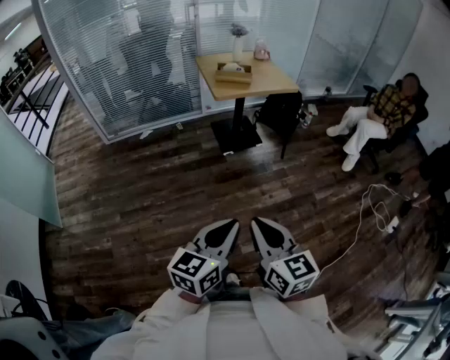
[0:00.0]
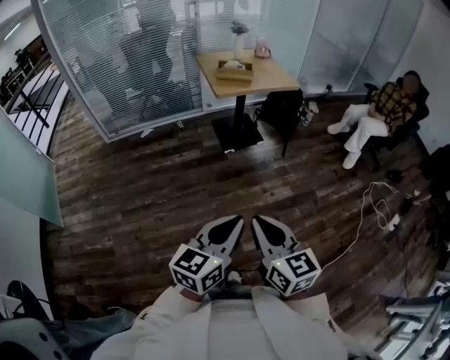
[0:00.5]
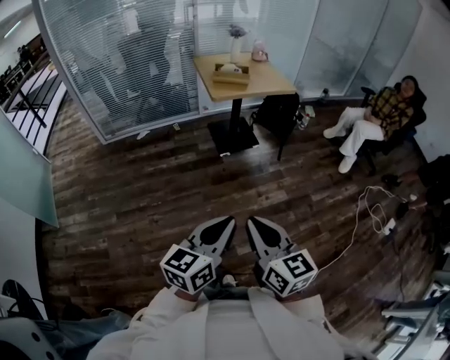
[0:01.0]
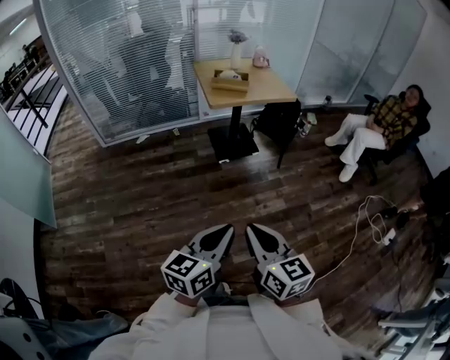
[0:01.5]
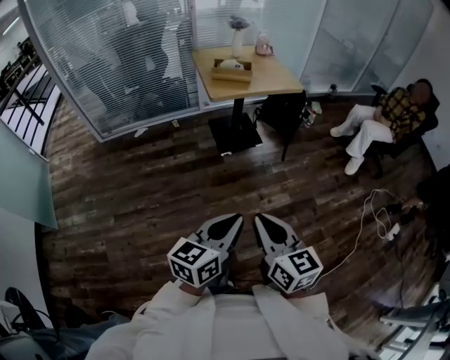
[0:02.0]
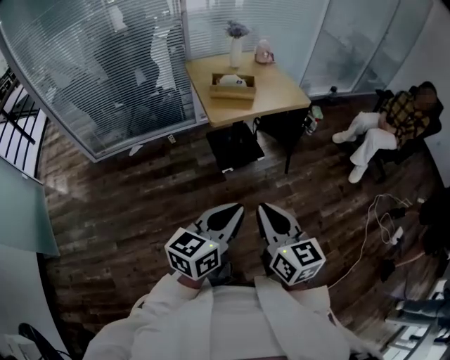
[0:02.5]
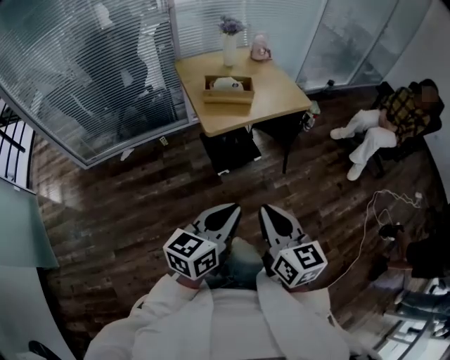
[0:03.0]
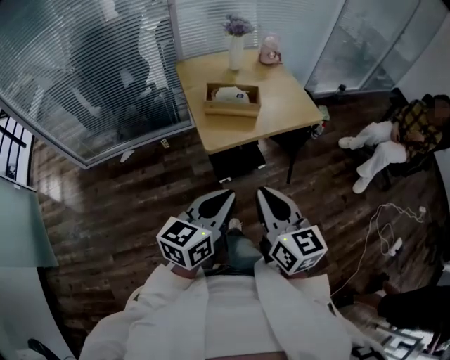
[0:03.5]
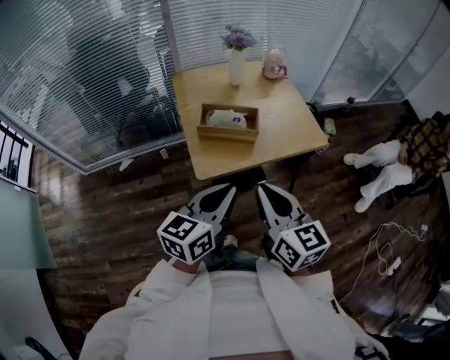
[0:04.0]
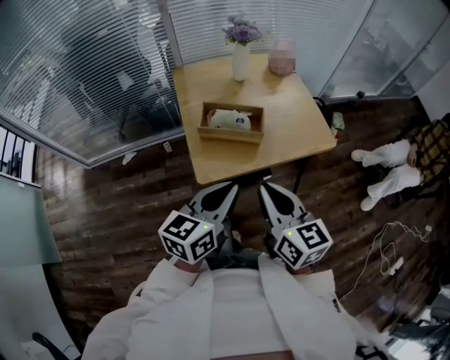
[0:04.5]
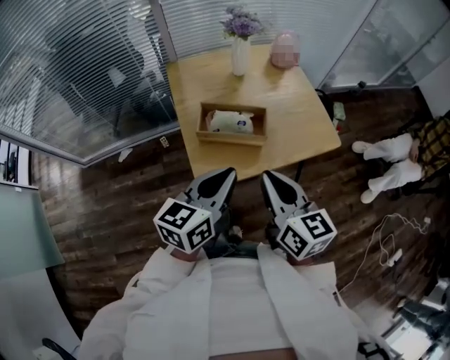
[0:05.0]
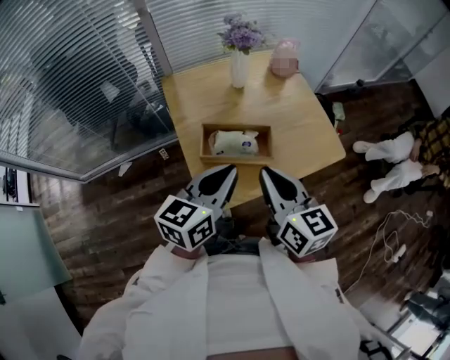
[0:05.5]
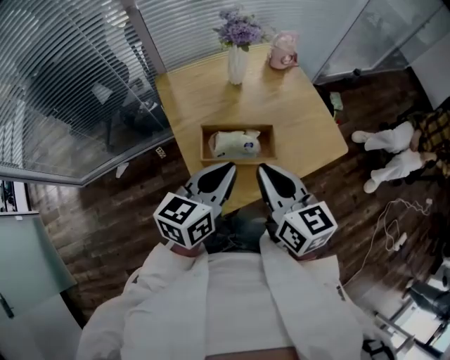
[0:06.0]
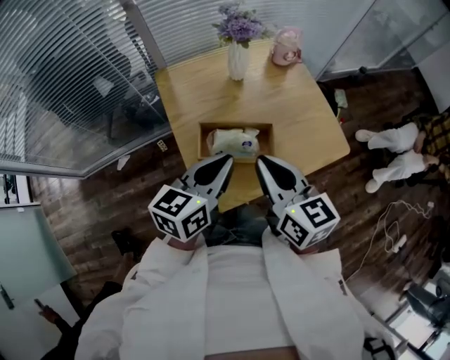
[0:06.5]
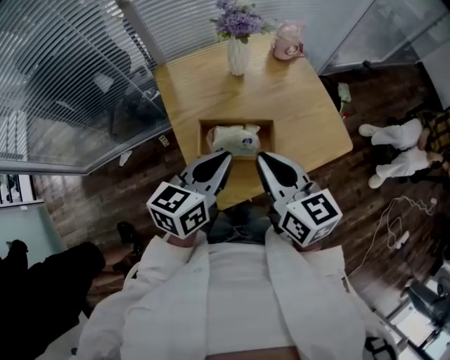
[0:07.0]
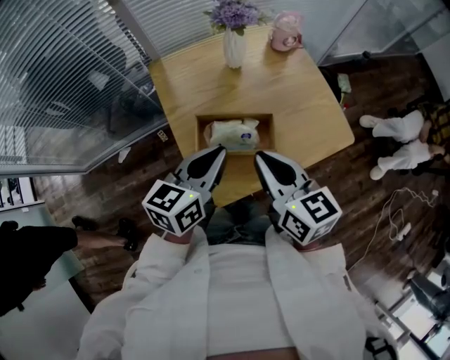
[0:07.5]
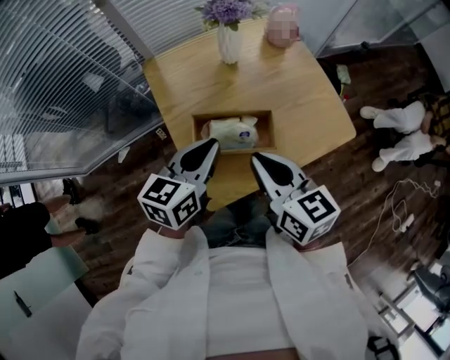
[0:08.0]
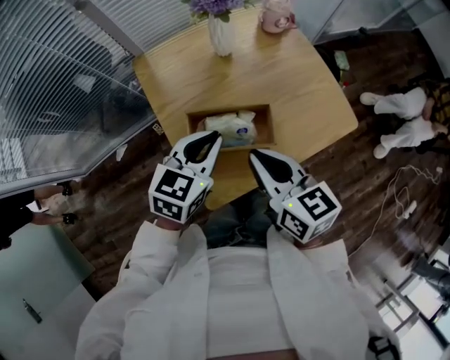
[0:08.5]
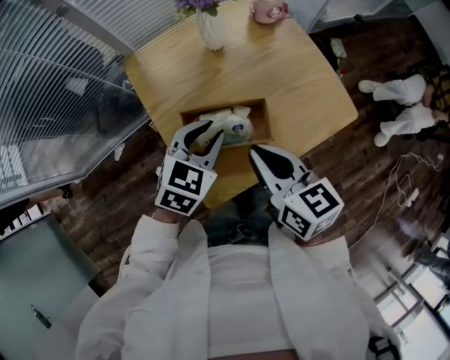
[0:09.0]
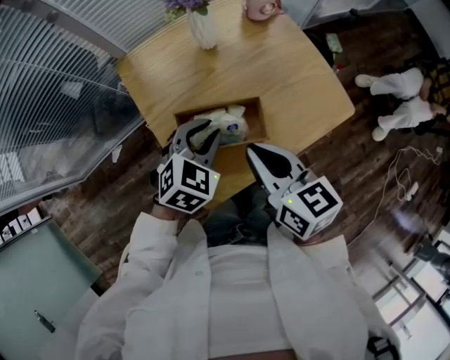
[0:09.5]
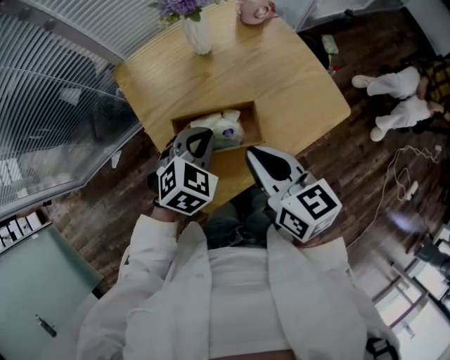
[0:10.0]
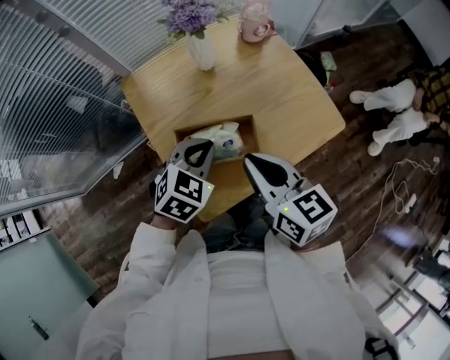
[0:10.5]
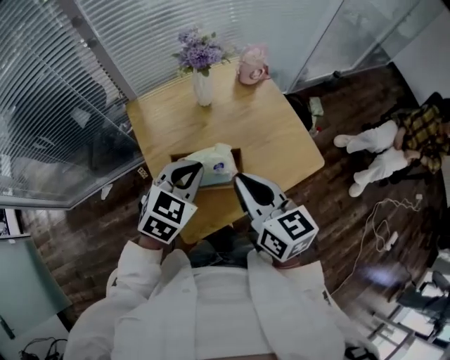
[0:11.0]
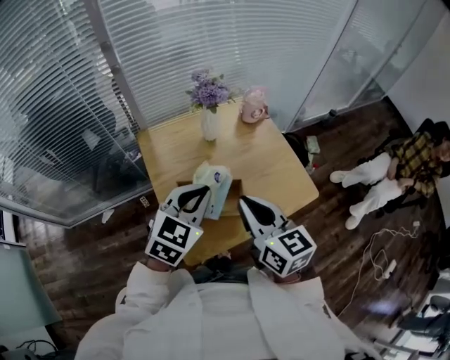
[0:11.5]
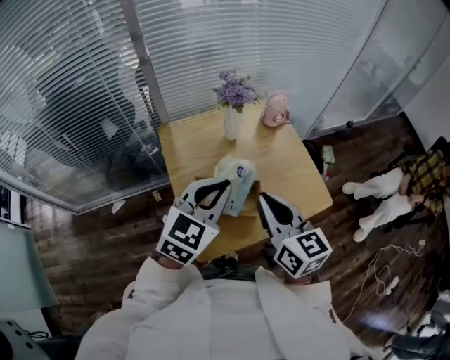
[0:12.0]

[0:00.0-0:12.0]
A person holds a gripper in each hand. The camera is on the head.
0:00.0 to 0:02.0: Both grippers move forward, some 10 cm.
0:02.0 to 0:04.0: Both grippers are carried forward, approximately 50 cm.
0:04.0 to 0:06.0: The two grippers go some 20 cm forward.
0:06.0 to 0:08.0: The left gripper shifts by approximately 5 cm.
0:08.0 to 0:10.0: The left gripper goes some 10 cm downward, and twists some 50 degrees clockwise, seen from behind.
0:10.0 to 0:12.0: The right gripper travels upward by about 10 cm. Meanwhile the left gripper goes approximately 20 cm upward, and tilts its fingers some 30 degrees upward.

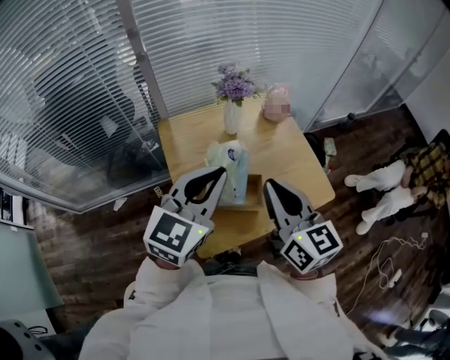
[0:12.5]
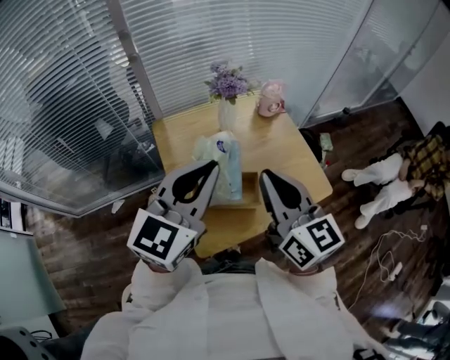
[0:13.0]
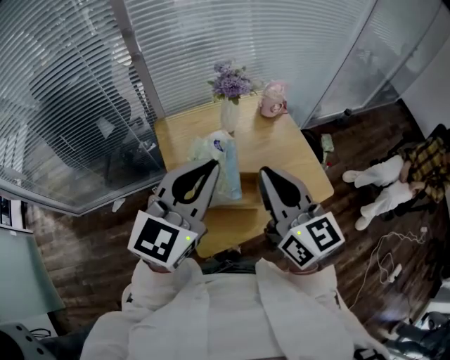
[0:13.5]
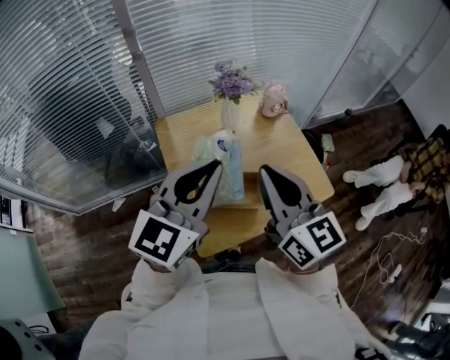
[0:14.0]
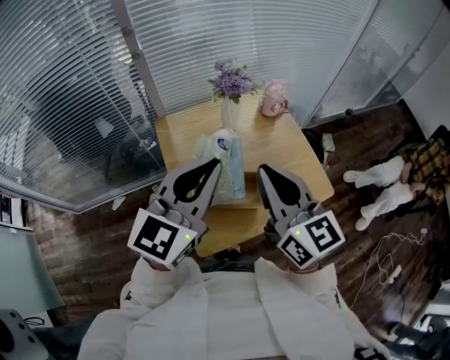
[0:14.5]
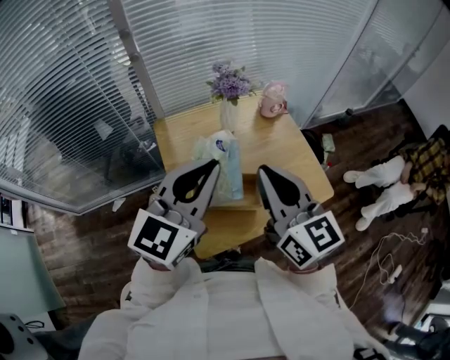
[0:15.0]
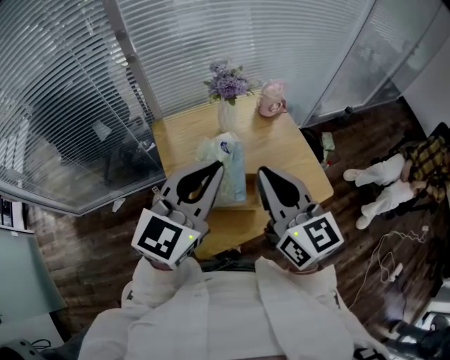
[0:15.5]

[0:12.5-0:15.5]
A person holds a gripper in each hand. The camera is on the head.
0:12.5 to 0:15.5: The grippers make only small movements.

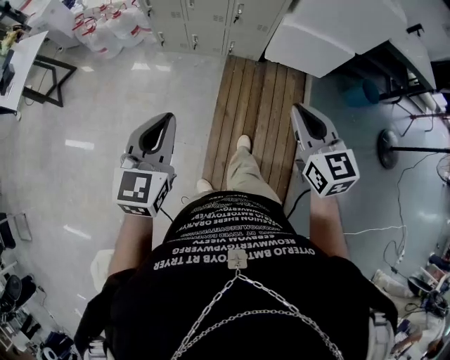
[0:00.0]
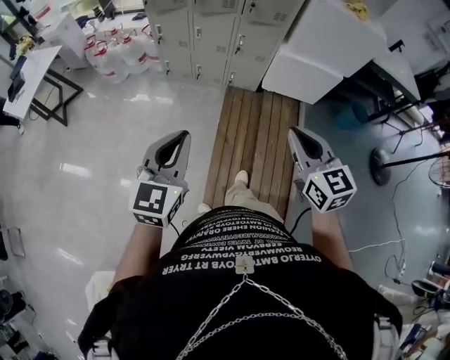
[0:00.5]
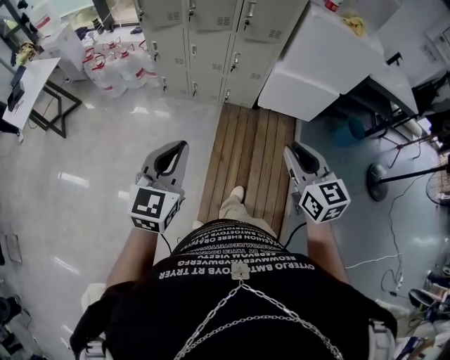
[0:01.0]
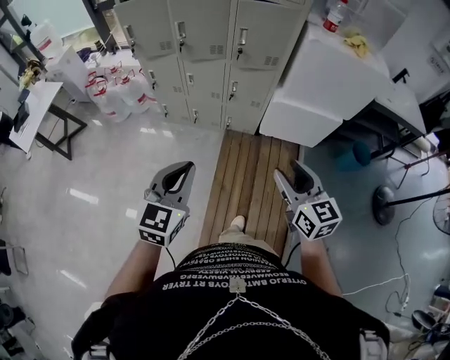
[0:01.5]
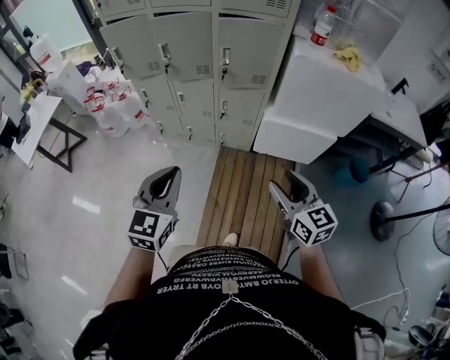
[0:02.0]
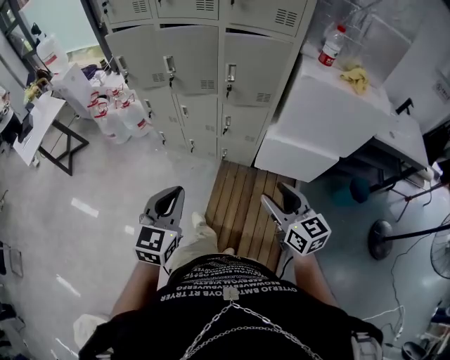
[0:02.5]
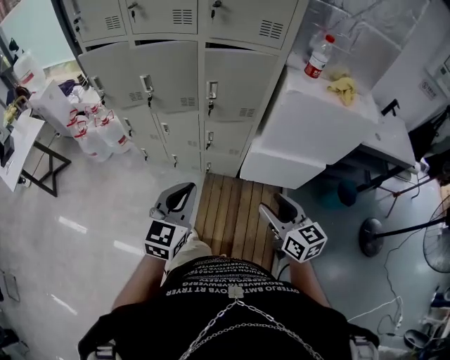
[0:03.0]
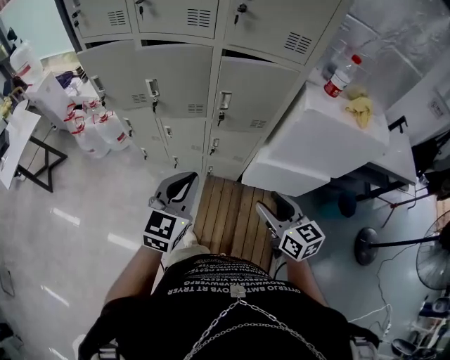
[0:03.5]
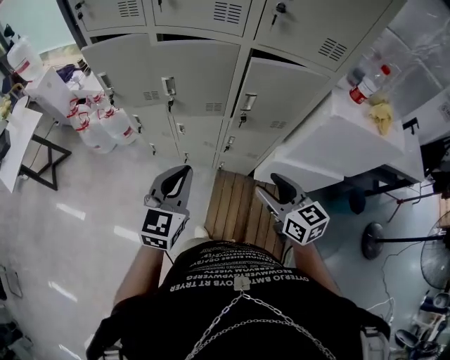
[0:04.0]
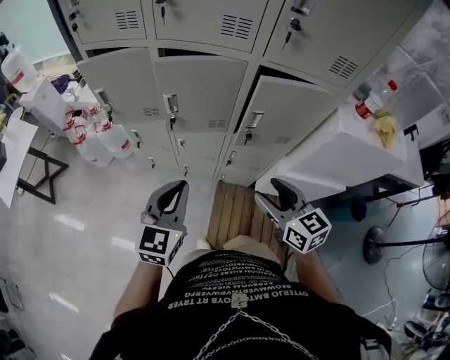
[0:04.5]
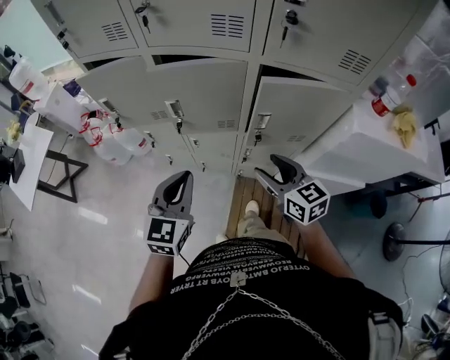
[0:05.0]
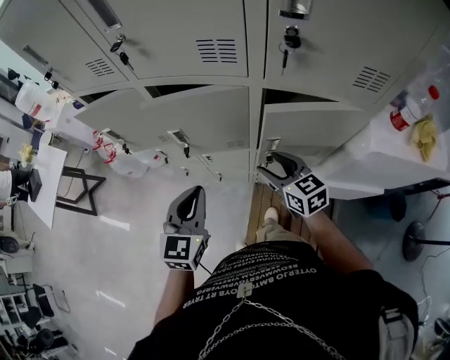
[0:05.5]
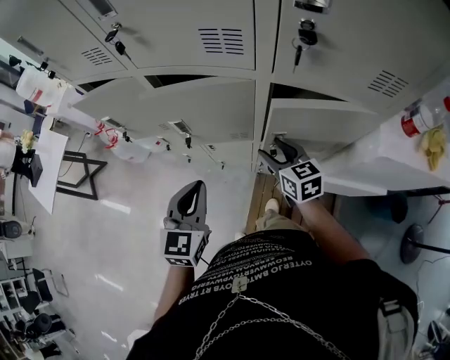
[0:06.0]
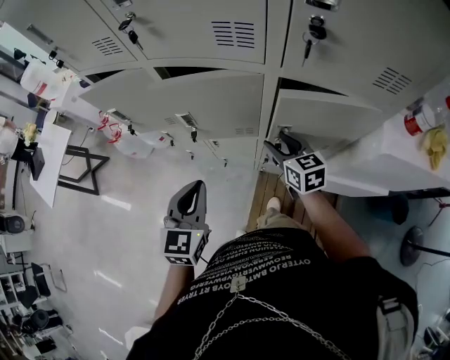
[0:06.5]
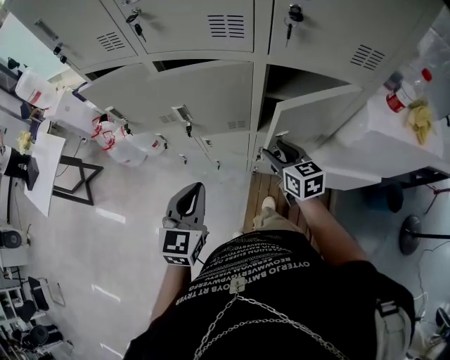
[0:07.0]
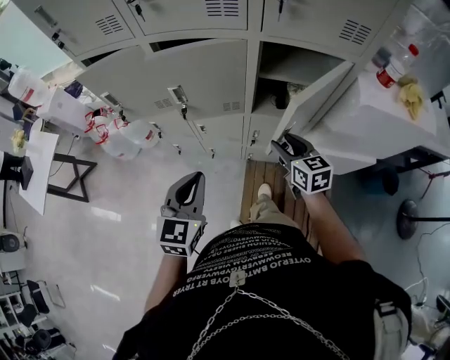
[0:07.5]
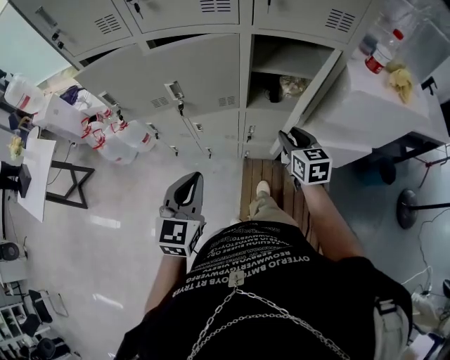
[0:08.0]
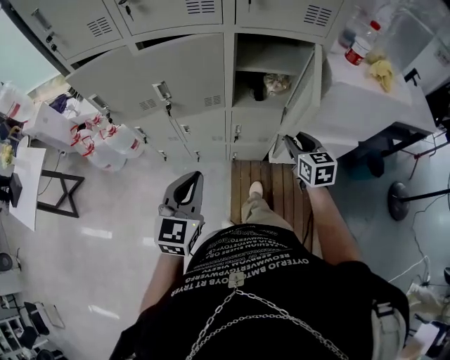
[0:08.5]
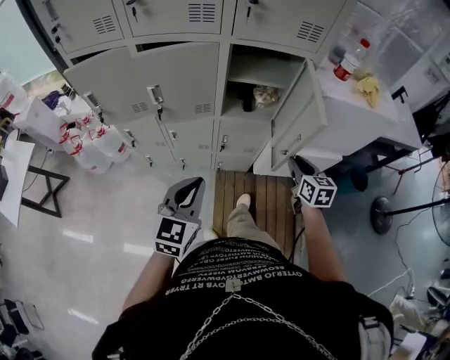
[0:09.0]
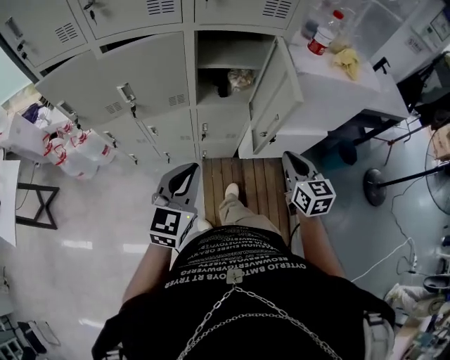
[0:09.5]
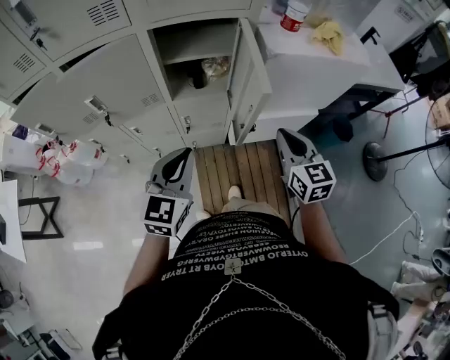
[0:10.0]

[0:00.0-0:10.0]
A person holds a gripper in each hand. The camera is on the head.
0:00.0 to 0:02.0: The grippers both shift forward and to the right by about 20 cm. The right gripper opens its fingers.
0:02.0 to 0:04.0: The left gripper travels forward by about 30 cm. The right gripper travels forward and to the left by approximately 30 cm.
0:04.0 to 0:06.0: The left gripper heads forward, covering about 15 cm. The right gripper goes roughly 30 cm forward.
0:06.0 to 0:08.0: The left gripper goes about 15 cm backward; the right gripper is displaced backward and to the right by roughly 15 cm, changes its angle by approximately 20 degrees, and closes.
0:08.0 to 0:10.0: The left gripper heads to the right, covering about 20 cm. The right gripper is displaced to the right and backward by some 20 cm, and closes up.

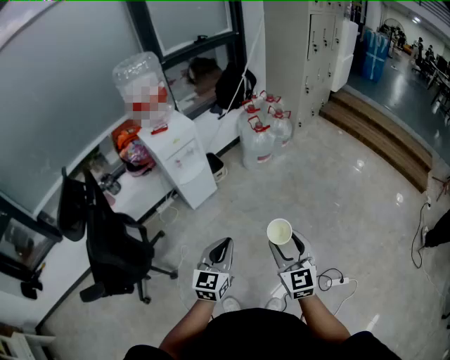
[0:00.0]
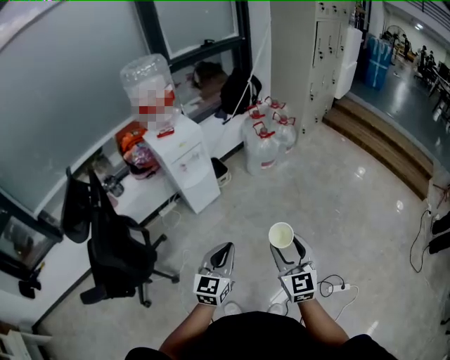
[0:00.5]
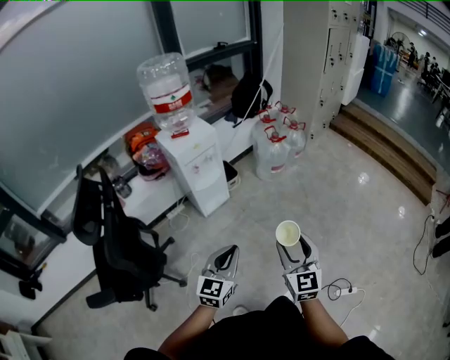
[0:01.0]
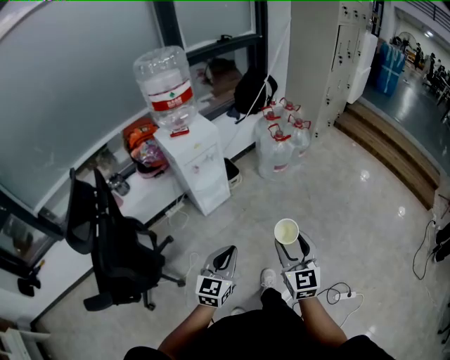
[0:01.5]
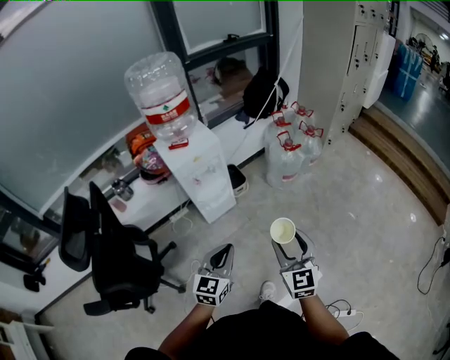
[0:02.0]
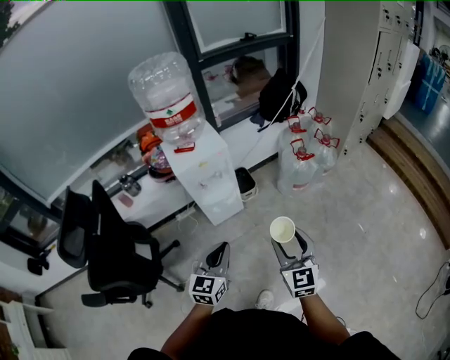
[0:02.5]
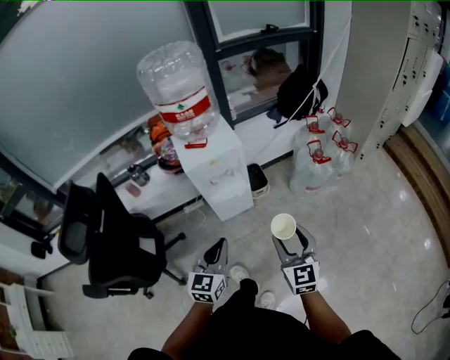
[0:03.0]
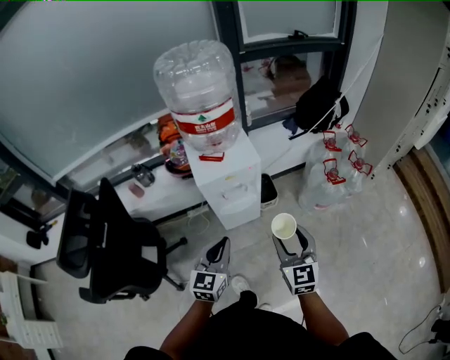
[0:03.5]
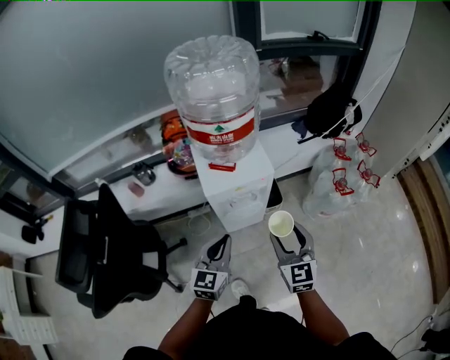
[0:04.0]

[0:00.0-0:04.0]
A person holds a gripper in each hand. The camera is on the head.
0:00.0 to 0:02.0: The right gripper travels forward by some 20 cm. Meanwhile the left gripper goes about 20 cm forward and to the left.
0:02.0 to 0:04.0: The left gripper is displaced forward and to the left by roughly 30 cm, and changes its angle by about 20 degrees. The right gripper goes about 30 cm forward.
